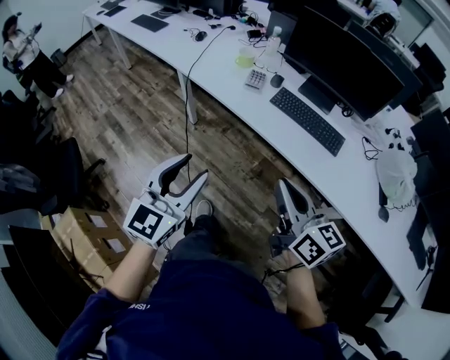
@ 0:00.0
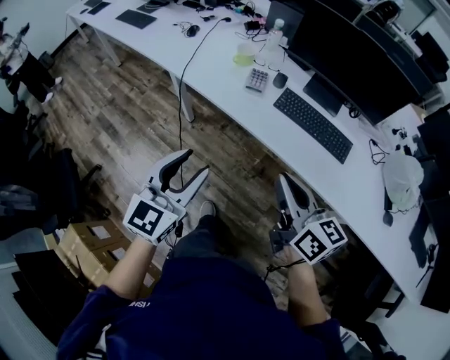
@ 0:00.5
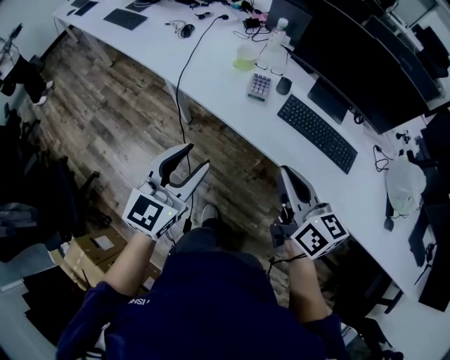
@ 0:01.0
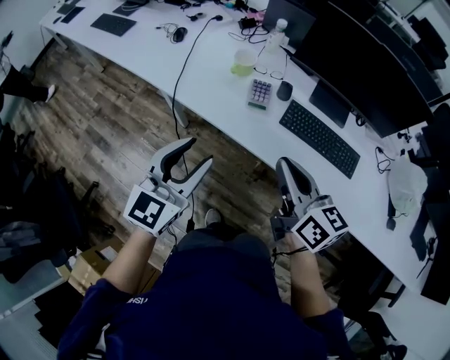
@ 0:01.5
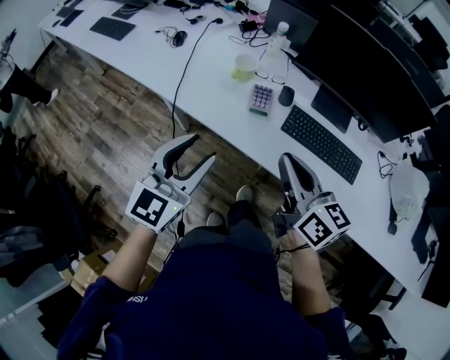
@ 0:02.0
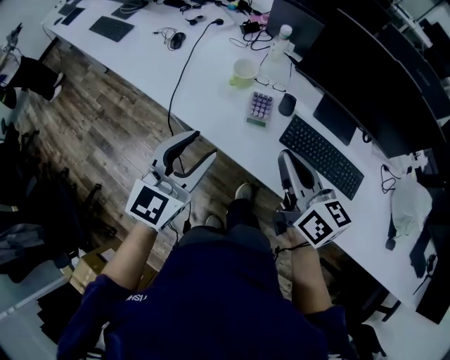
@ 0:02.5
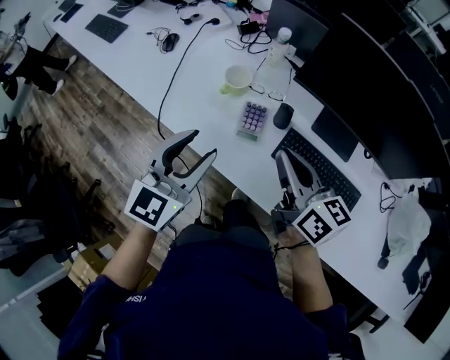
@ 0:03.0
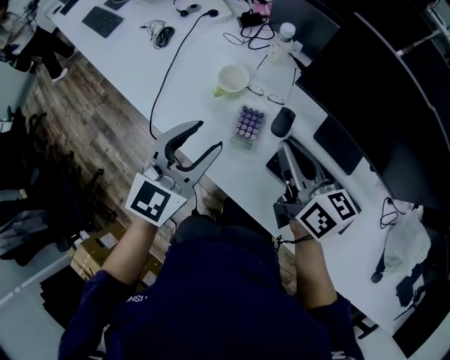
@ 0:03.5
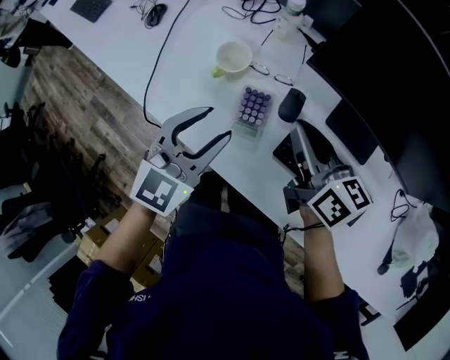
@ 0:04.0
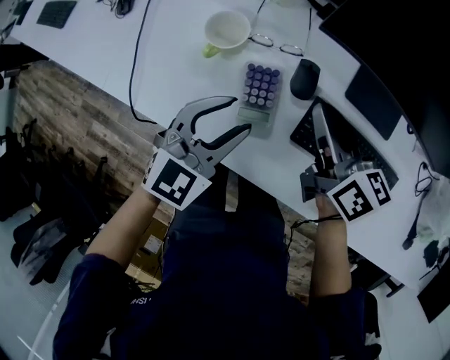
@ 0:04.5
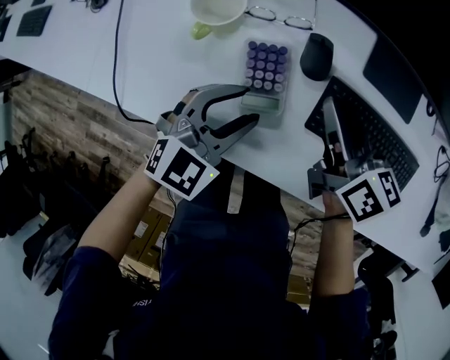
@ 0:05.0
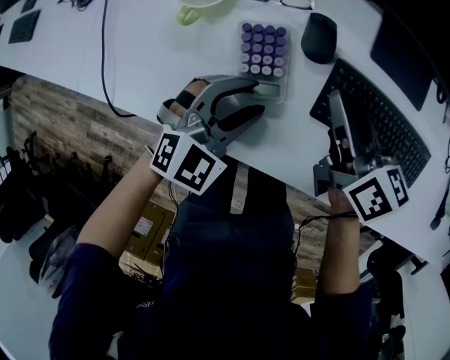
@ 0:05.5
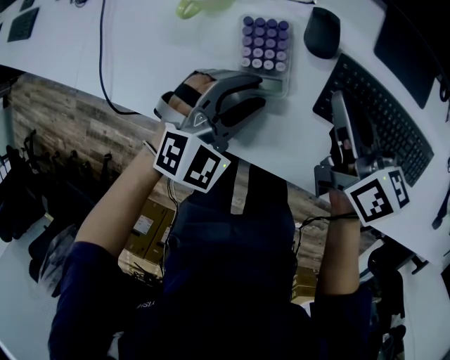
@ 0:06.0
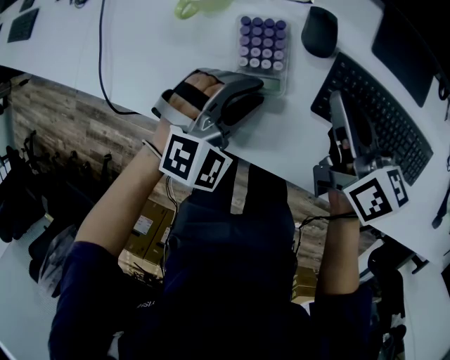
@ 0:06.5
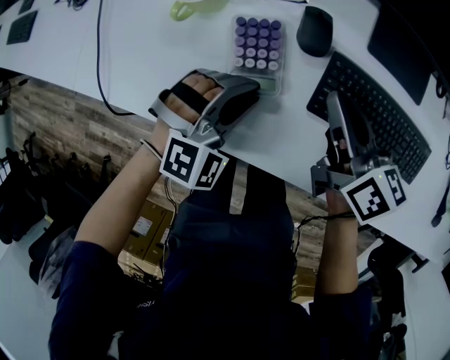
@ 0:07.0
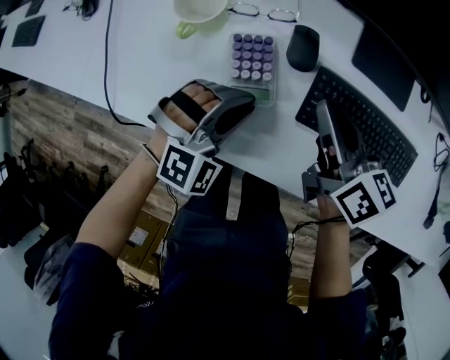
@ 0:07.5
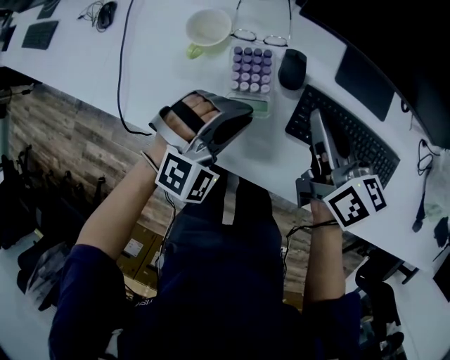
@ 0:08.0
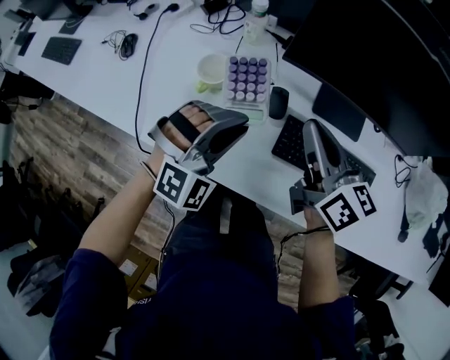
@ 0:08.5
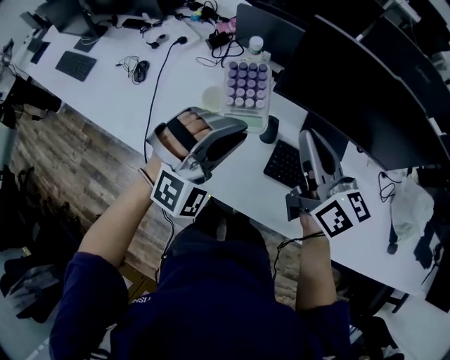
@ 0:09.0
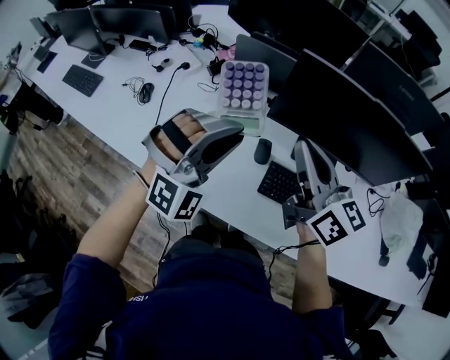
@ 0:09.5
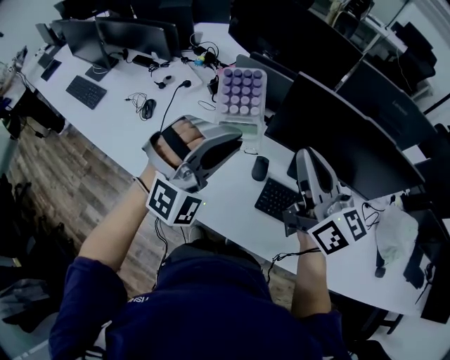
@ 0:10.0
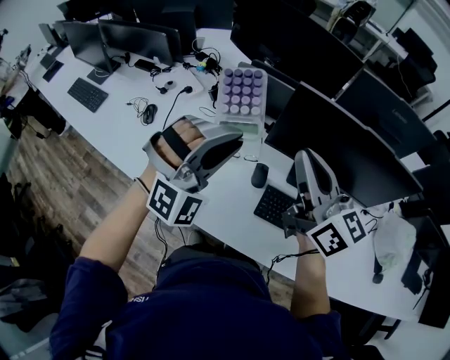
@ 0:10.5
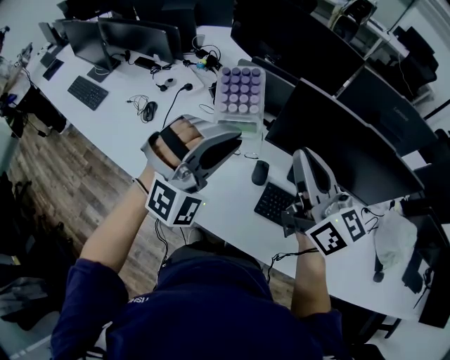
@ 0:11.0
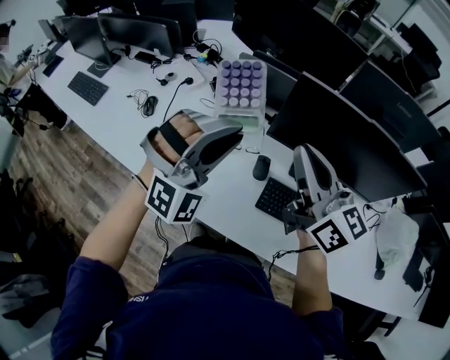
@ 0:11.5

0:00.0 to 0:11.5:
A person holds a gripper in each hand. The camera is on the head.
0:00.0 to 0:02.0: Both grippers travel together forward, approximately 30 cm.
0:02.0 to 0:04.0: The right gripper goes some 25 cm forward and downward. The left gripper goes approximately 25 cm forward, to the right and downward.
0:04.0 to 0:06.0: The grippers both shift downward by approximately 15 cm. The left gripper rotates about 40 degrees.
0:06.0 to 0:07.5: The left gripper closes up.
0:07.5 to 0:09.5: The grippers both shift upward by roughly 30 cm. The right gripper rotates approximately 30 degrees, while the left gripper rotates about 30 degrees.
0:09.5 to 0:11.5: The left gripper changes place by approximately 5 cm.

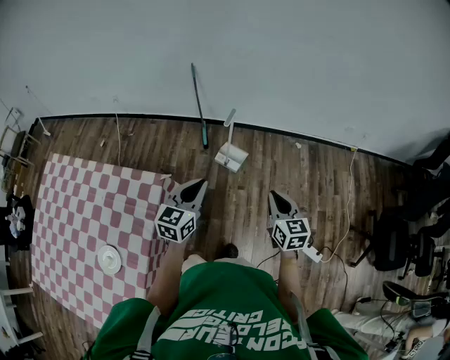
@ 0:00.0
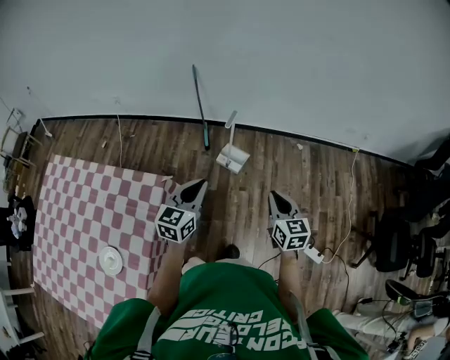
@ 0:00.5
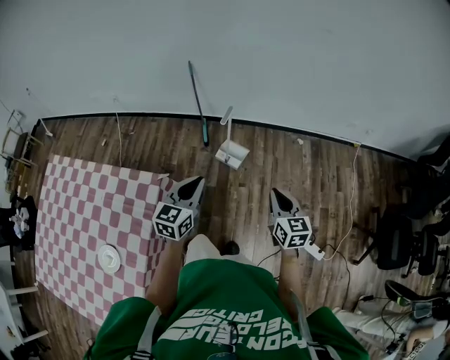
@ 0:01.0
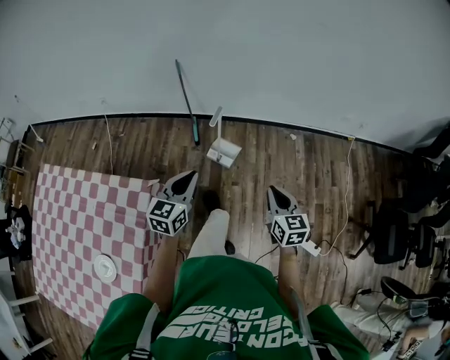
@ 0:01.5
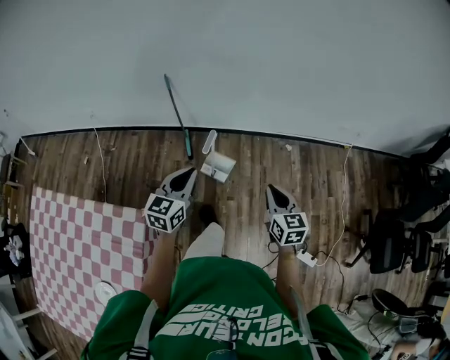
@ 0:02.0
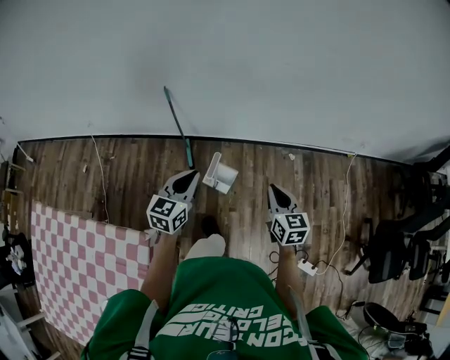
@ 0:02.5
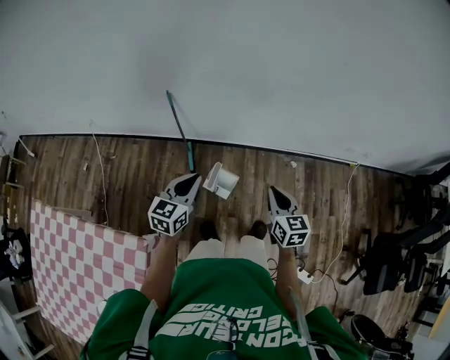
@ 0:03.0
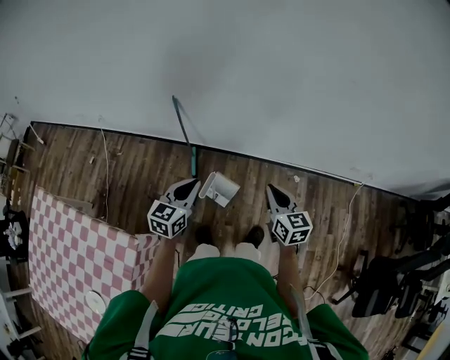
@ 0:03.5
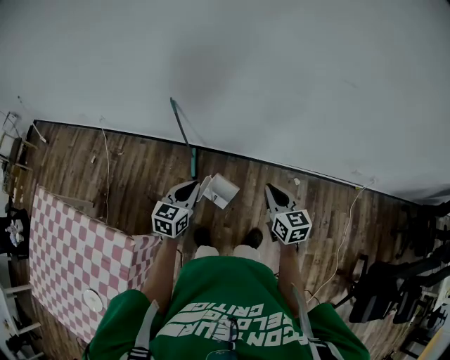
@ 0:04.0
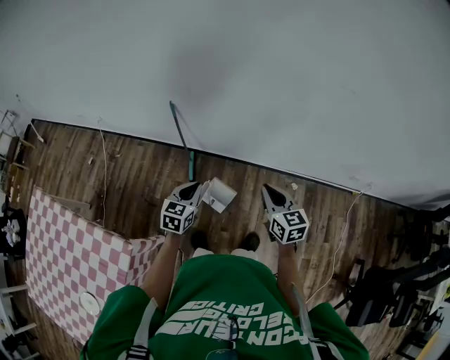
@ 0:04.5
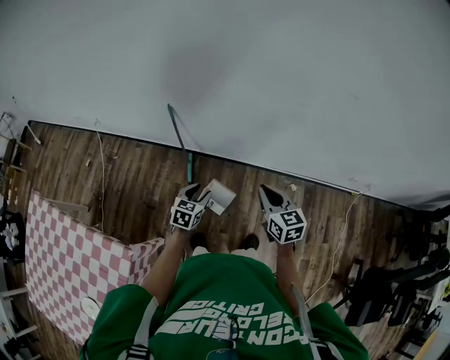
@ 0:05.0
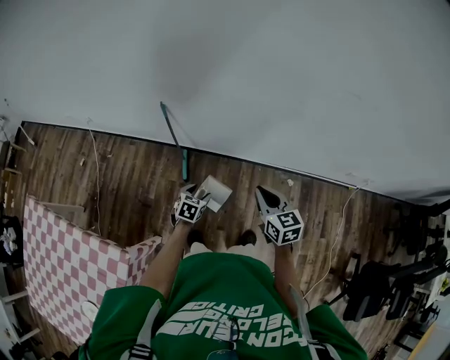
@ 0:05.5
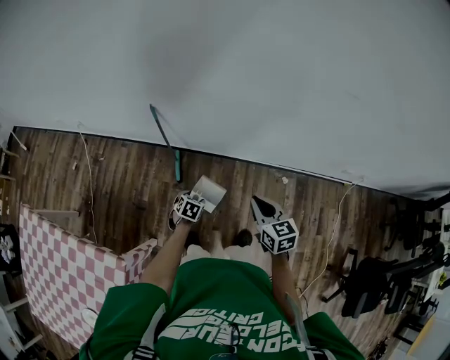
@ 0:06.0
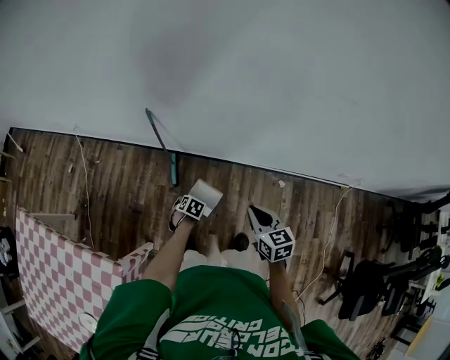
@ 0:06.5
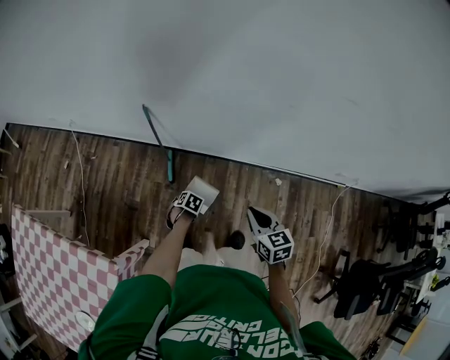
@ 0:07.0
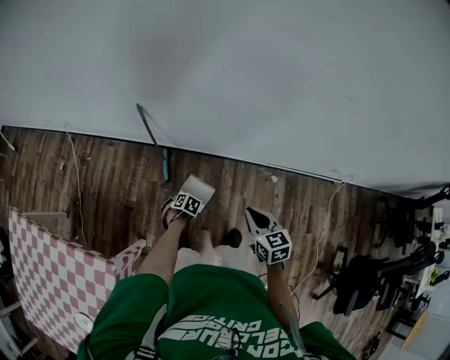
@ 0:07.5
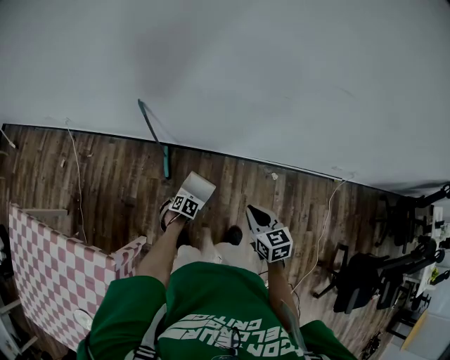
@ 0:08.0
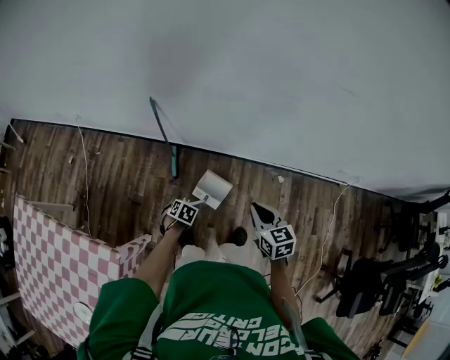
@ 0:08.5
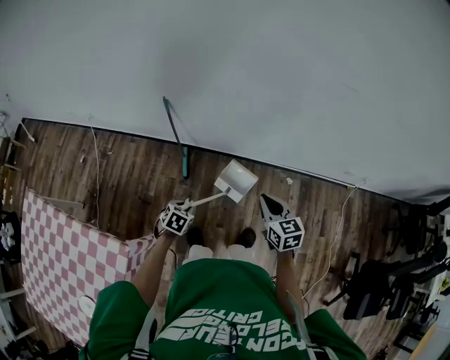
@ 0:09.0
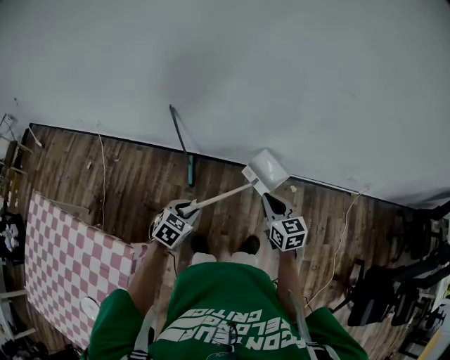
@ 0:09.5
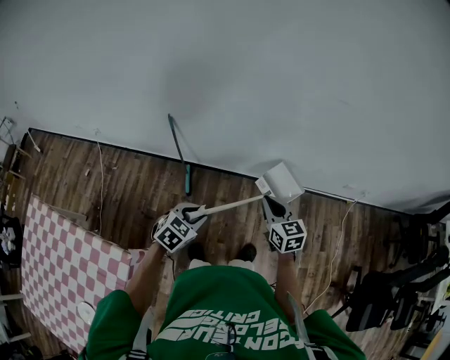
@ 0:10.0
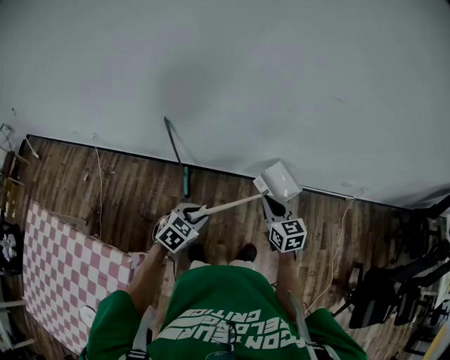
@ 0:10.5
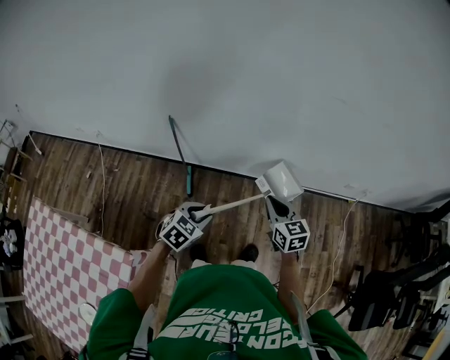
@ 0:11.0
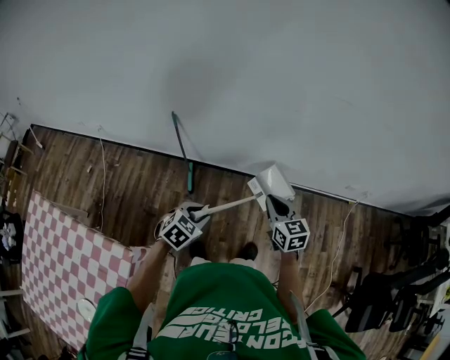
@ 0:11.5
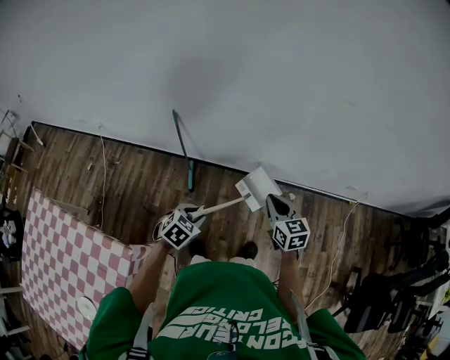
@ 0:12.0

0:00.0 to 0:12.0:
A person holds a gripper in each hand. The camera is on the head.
0:00.0 to 0:02.0: The two grippers go approximately 20 cm forward.
0:02.0 to 0:04.0: Both grippers travel together forward, approximately 20 cm.
0:04.0 to 0:06.0: The left gripper shifts approximately 25 cm downward, tips its fingers downward by roughly 40 degrees, and opens its fingers; the right gripper shifts by roughly 5 cm.
0:06.0 to 0:08.0: The left gripper moves downward, some 5 cm, changes its angle by about 20 degrees, and closes up.
0:08.0 to 0:10.0: The right gripper travels upward by some 5 cm. Meanwhile the left gripper heads upward, covering roughly 30 cm, and points its fingers approximately 40 degrees further upward.
0:10.0 to 0:12.0: There are only small adjustments of the grippers.

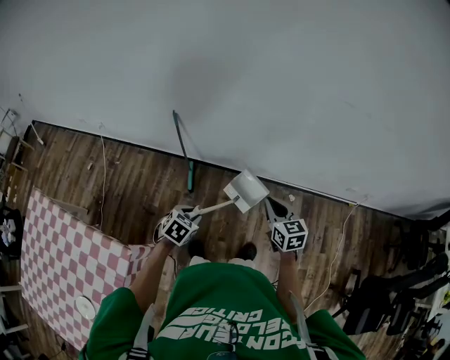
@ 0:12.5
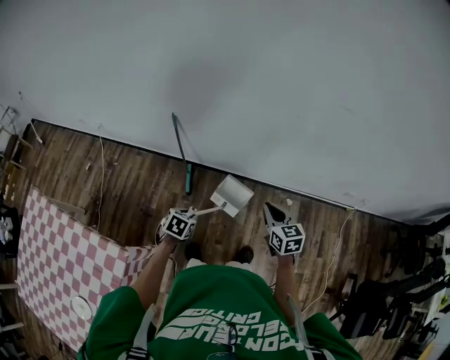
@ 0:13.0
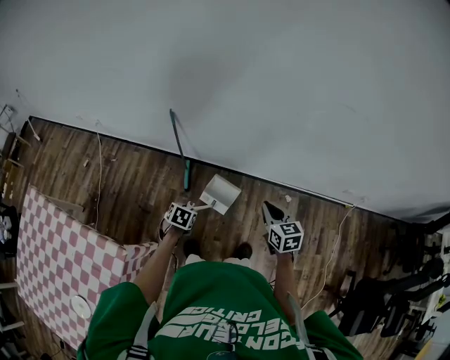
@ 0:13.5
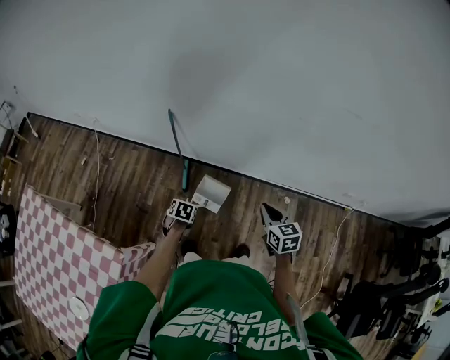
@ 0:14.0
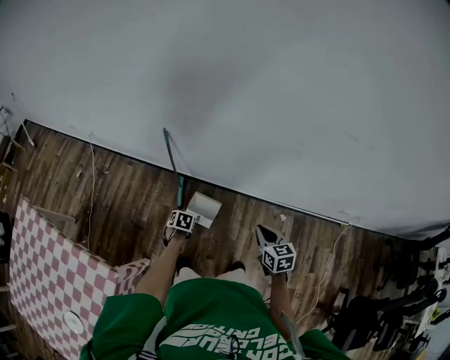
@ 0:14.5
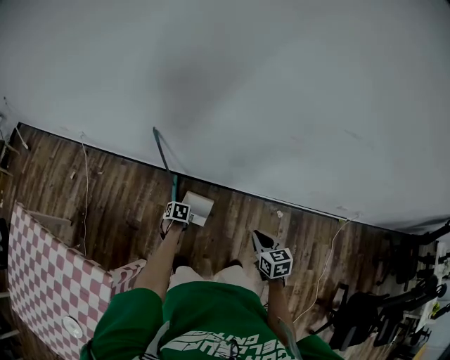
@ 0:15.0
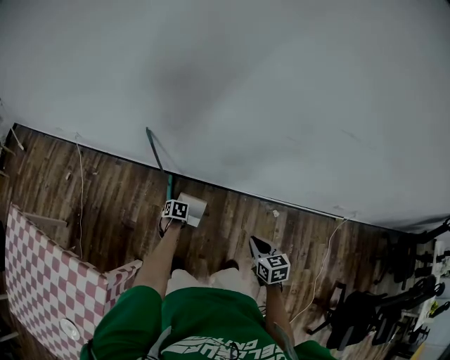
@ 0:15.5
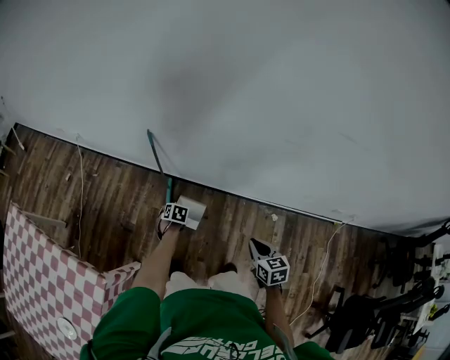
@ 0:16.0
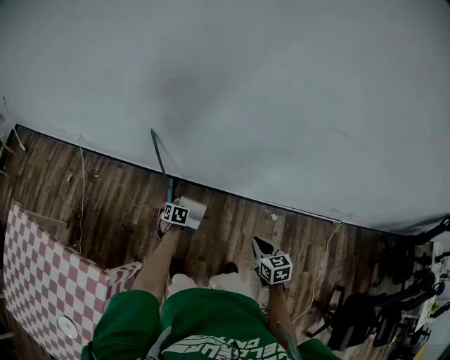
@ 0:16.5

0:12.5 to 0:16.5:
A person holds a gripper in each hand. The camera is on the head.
0:12.5 to 0:14.5: The left gripper heads downward and forward, covering approximately 20 cm, and swivels some 30 degrees; the right gripper moves downward, approximately 5 cm.
0:14.5 to 0:16.5: The left gripper moves roughly 5 cm; the right gripper shifts by approximately 5 cm.
